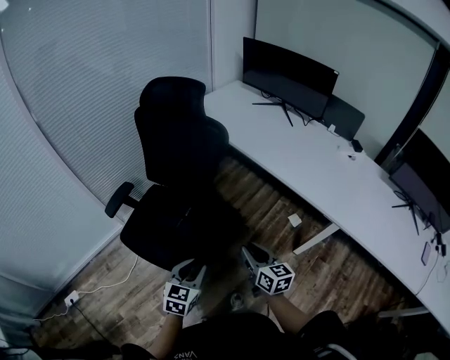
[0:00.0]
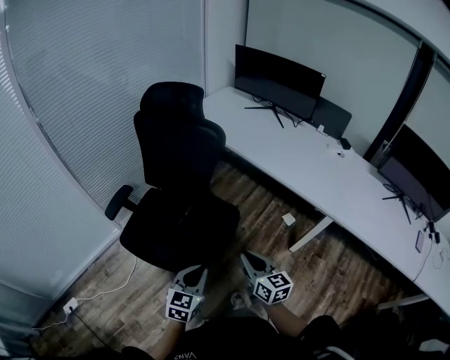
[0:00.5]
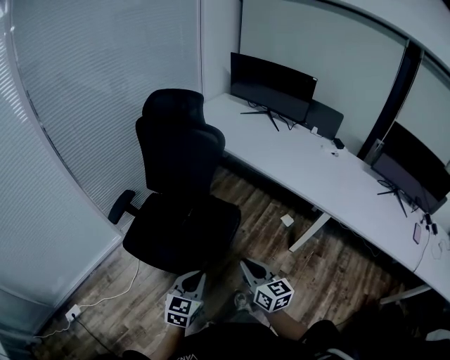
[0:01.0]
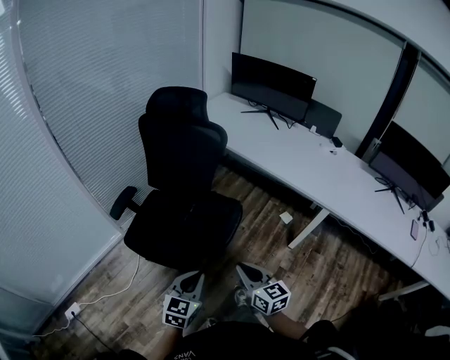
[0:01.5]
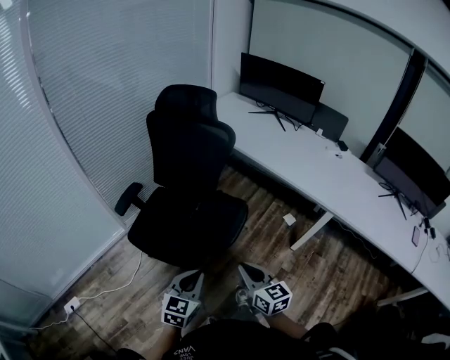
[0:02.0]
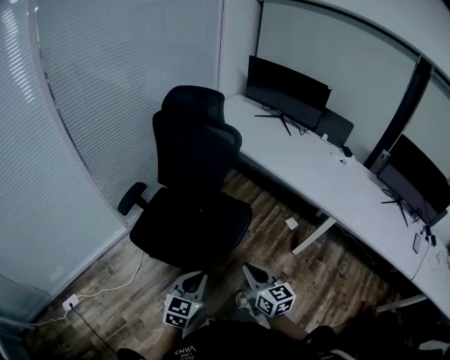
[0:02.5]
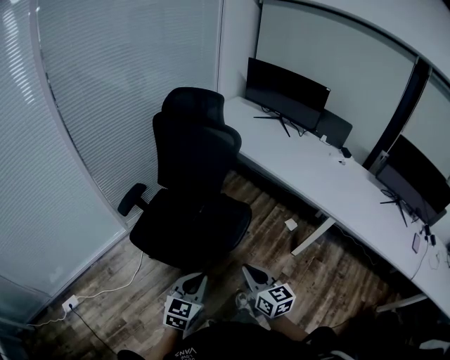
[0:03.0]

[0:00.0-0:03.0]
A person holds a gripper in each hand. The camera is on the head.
0:00.0 to 0:01.5: Both grippers move backward and to the left, some 20 cm. The left gripper closes.
0:01.5 to 0:03.0: The grippers make only small movements.

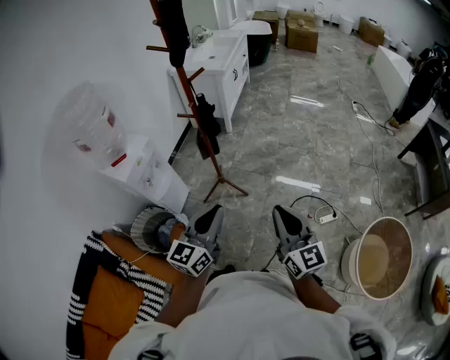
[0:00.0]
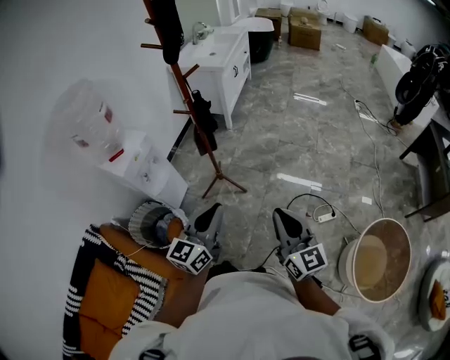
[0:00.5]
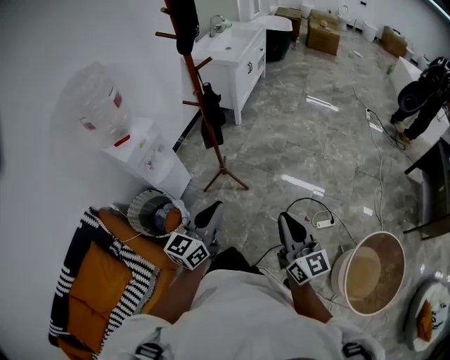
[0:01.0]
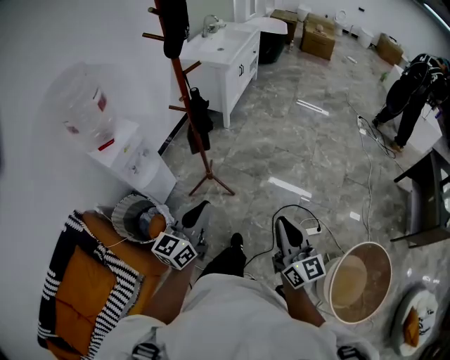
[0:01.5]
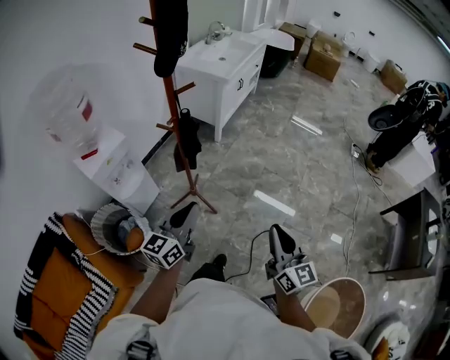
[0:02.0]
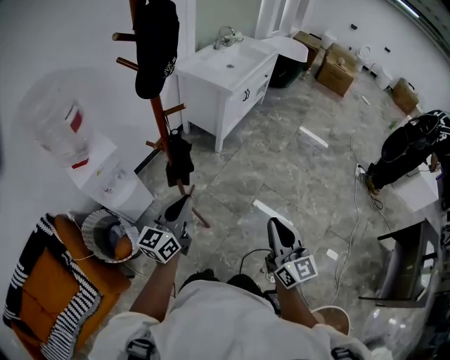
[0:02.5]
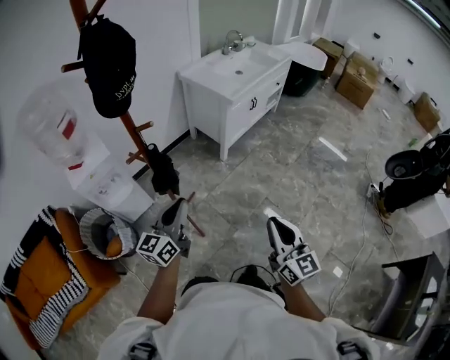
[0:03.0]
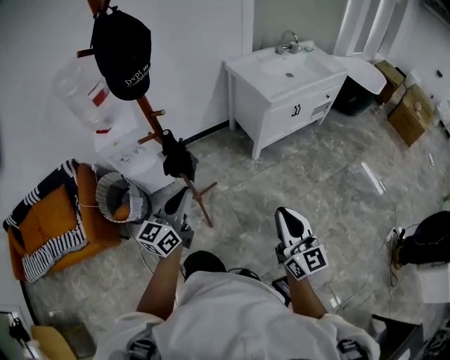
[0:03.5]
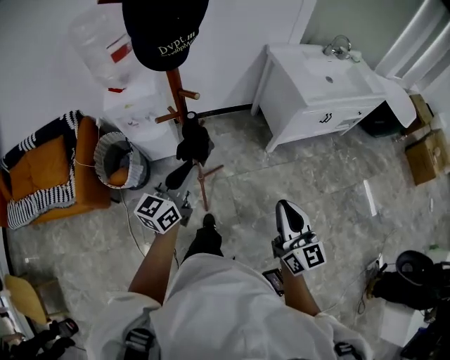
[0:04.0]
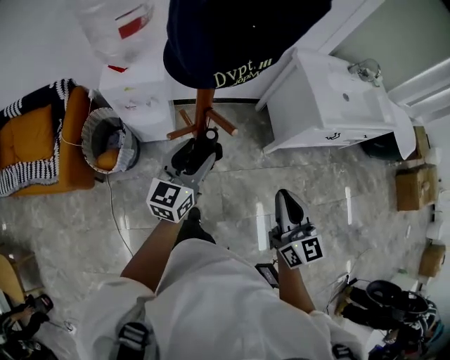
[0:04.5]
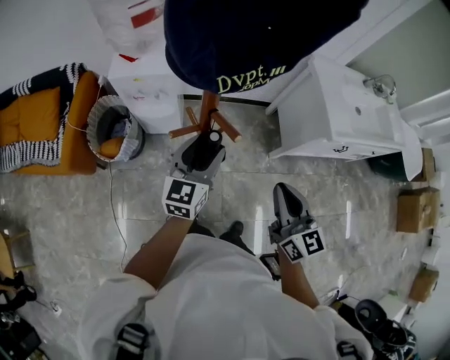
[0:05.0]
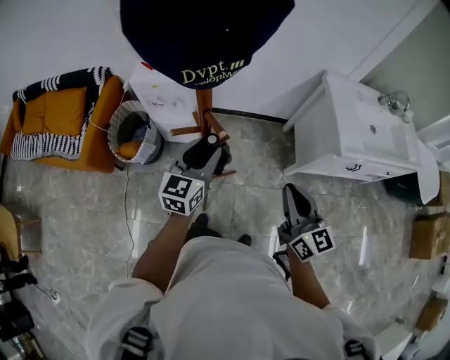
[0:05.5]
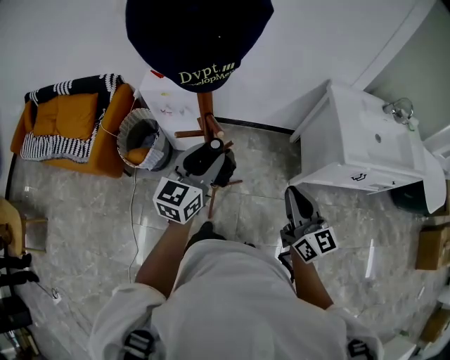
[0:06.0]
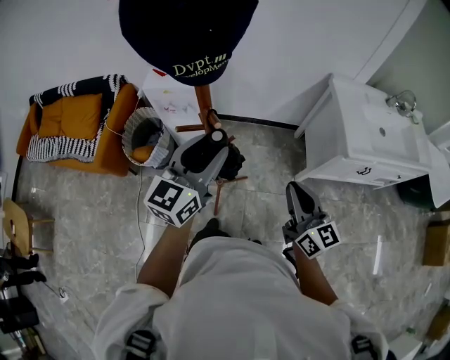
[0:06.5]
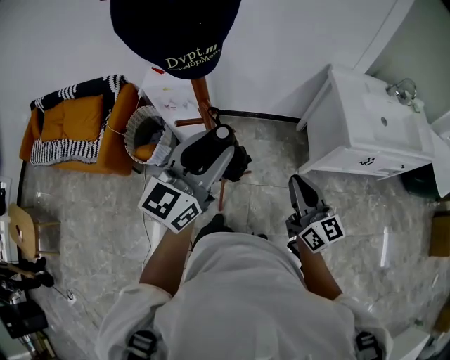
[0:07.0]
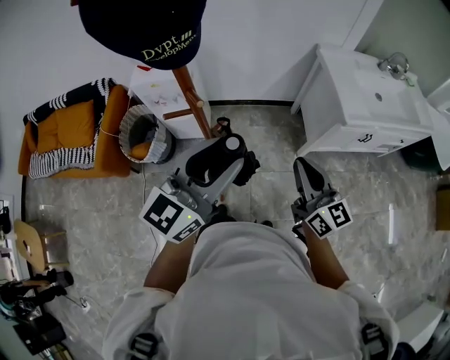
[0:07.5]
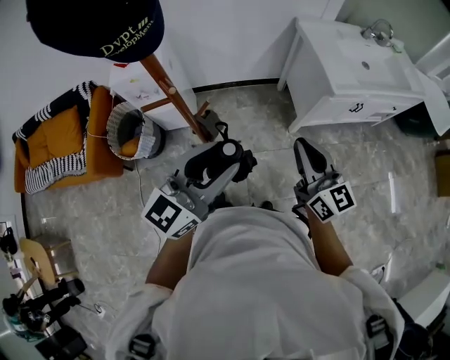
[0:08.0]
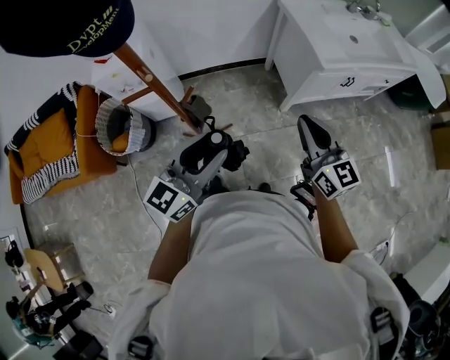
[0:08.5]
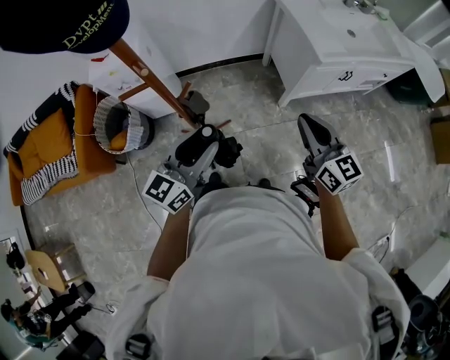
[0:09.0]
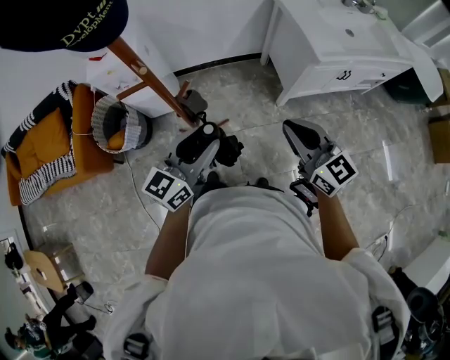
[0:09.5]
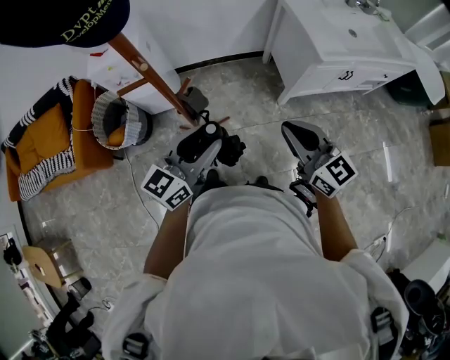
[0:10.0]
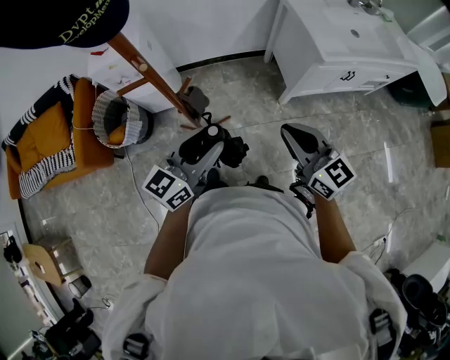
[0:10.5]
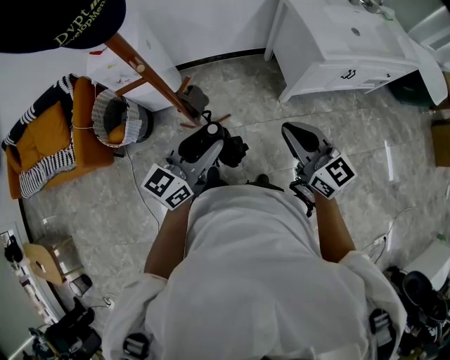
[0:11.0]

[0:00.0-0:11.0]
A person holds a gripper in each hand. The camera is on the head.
0:00.0 to 0:02.0: The right gripper moves forward and to the right, roughly 20 cm; the left gripper travels forward by about 20 cm.
0:02.0 to 0:03.5: The right gripper ends up approximately 40 cm from where it was, and changes its angle by roughly 40 degrees. The left gripper shifts by some 30 cm, and rotates about 40 degrees.
0:03.5 to 0:05.5: The right gripper ends up about 35 cm from where it was, and swivels about 30 degrees; the left gripper ends up approximately 25 cm from where it was, changes its angle by roughly 30 degrees, and opens its fingers.
0:05.5 to 0:07.5: The left gripper moves upward, backward and to the right, approximately 20 cm, and swivels roughly 20 degrees, while the right gripper changes place by roughly 5 cm.
0:07.5 to 0:09.0: The right gripper shifts some 10 cm to the right. The left gripper heads downward, covering some 15 cm.
0:09.0 to 0:11.0: The right gripper shifts by some 5 cm.

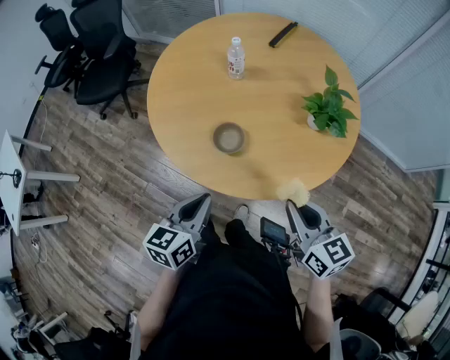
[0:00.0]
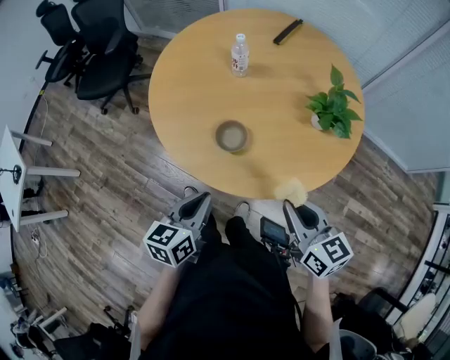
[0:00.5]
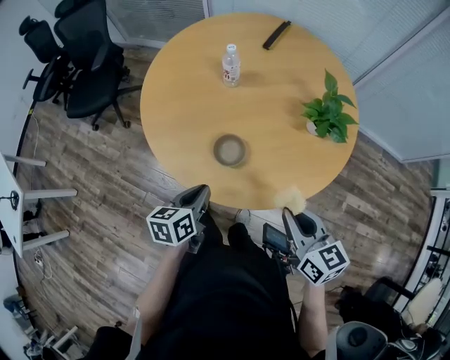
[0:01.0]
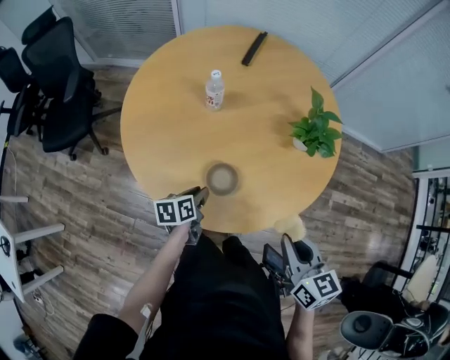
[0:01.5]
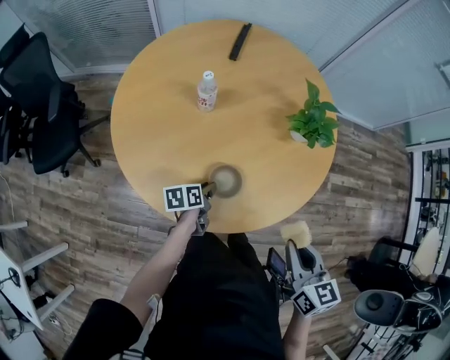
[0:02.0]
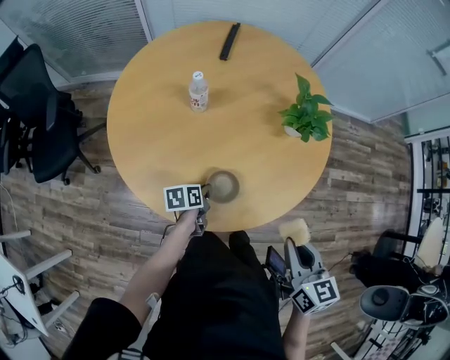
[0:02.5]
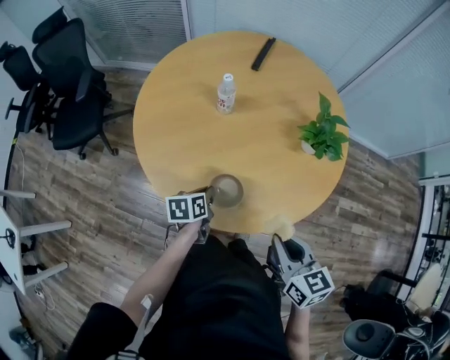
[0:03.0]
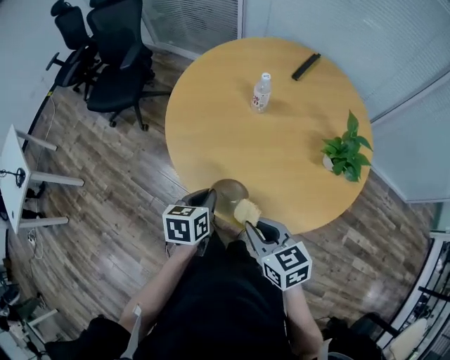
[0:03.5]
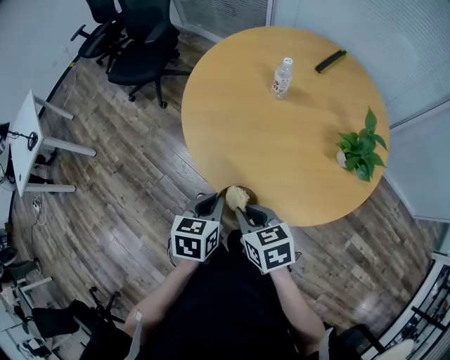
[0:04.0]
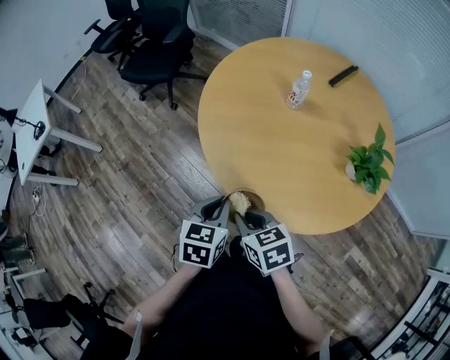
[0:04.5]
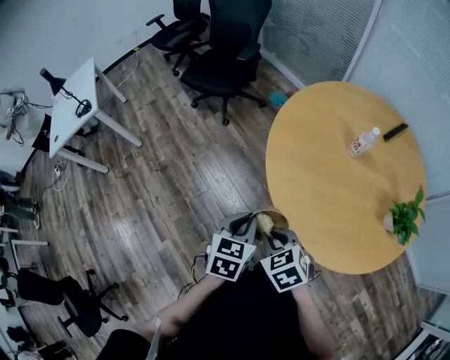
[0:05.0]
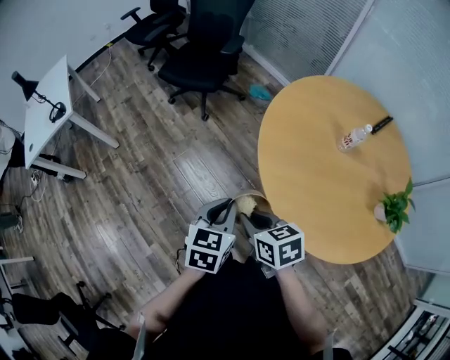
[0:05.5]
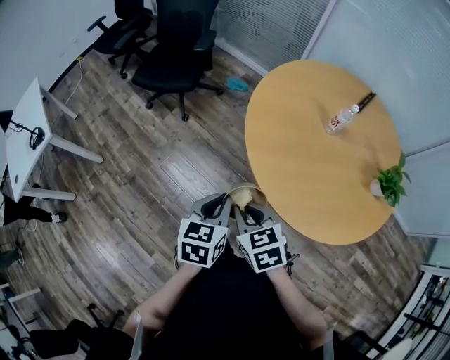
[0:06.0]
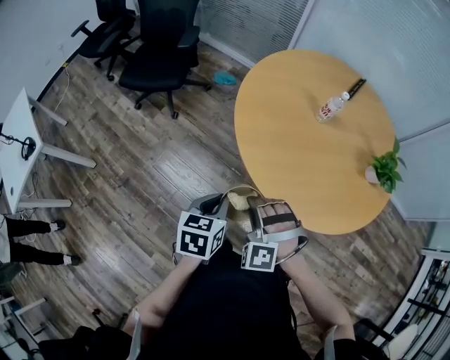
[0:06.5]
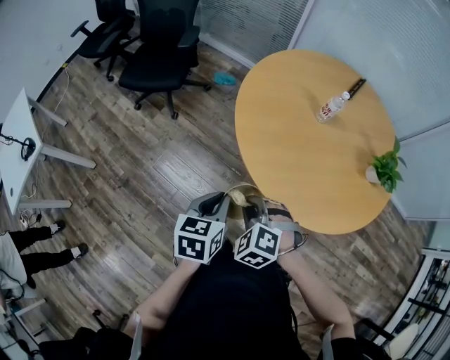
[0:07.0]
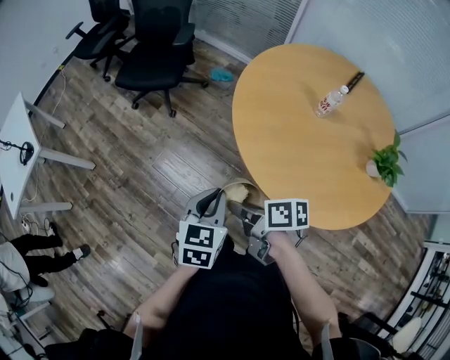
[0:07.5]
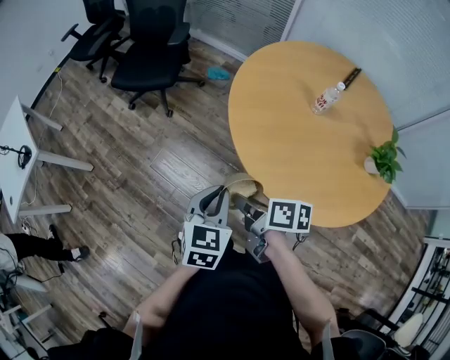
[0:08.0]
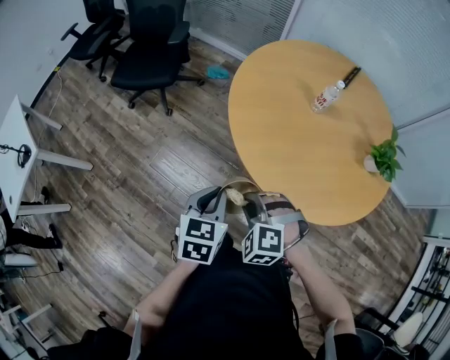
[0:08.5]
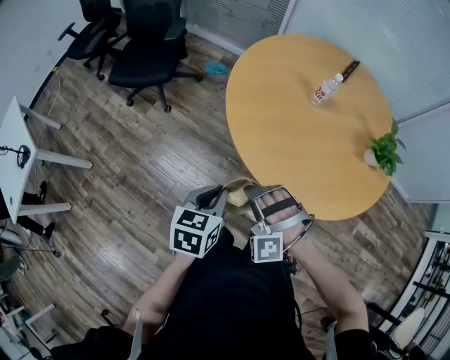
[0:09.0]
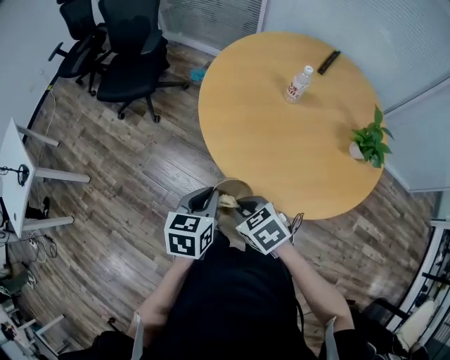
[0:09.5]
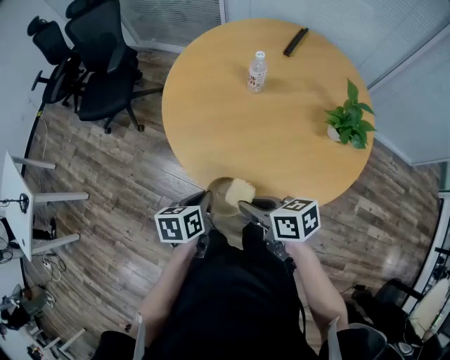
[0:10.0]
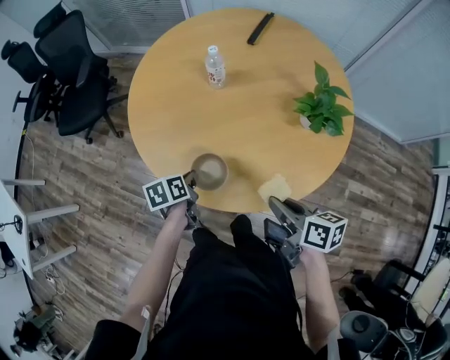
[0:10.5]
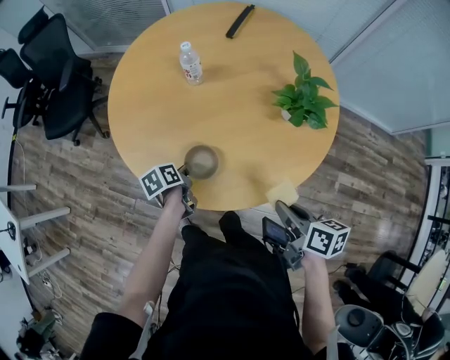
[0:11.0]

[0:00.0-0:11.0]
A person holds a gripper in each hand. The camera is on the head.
0:00.0 to 0:02.0: The left gripper shifts by about 30 cm, changes its angle by some 40 degrees, and opens its fingers, while the right gripper changes place by about 10 cm, and rotates approximately 40 degrees.
0:02.0 to 0:03.5: The right gripper moves approximately 10 cm, and changes its angle by approximately 50 degrees; the left gripper shifts roughly 15 cm upward, rotates roughly 30 degrees, and closes.
0:03.5 to 0:05.5: Both grippers travel together to the left, about 25 cm. The right gripper changes its angle by some 20 degrees.
0:05.5 to 0:07.5: The right gripper twists approximately 40 degrees clockwise, seen from behind.
0:07.5 to 0:09.0: The right gripper rotates around the line of its fingers by about 130 degrees, counterclockwise from behind.
0:09.0 to 0:11.0: The left gripper travels to the right and downward by some 35 cm, and rotates roughly 40 degrees, while the right gripper moves to the right, about 50 cm, and rotates around the line of its fingers by about 140 degrees, clockwise from behind.

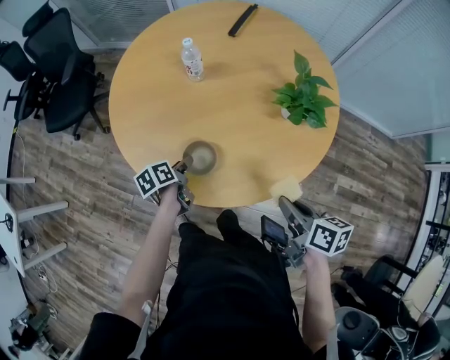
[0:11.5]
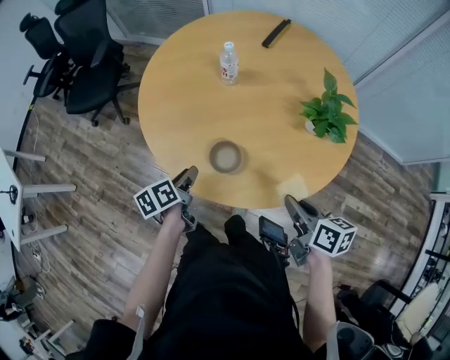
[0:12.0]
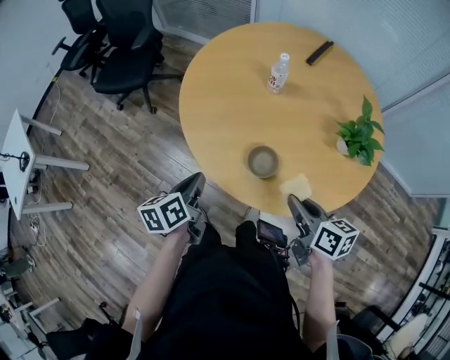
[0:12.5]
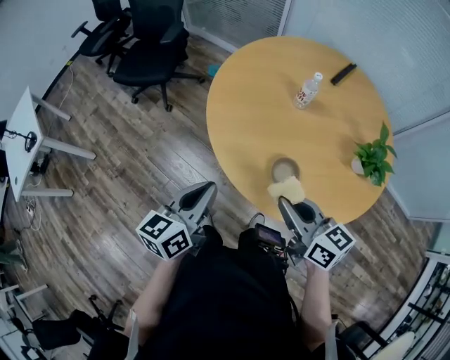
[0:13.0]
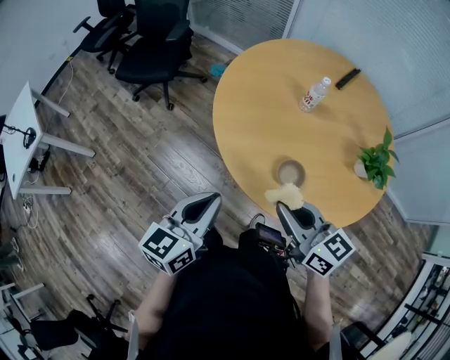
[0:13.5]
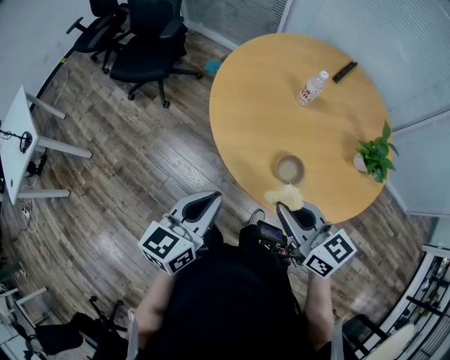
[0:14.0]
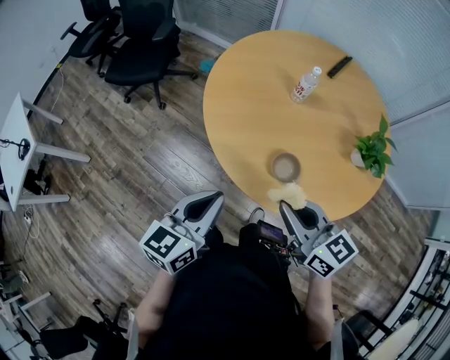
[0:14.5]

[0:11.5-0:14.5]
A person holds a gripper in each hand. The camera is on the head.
0:11.5 to 0:13.0: The right gripper is displaced to the left by approximately 25 cm, and changes its angle by about 40 degrees. Meanwhile the left gripper travels upward, to the left and backward by roughly 30 cm, tilts its fingers roughly 30 degrees upward, and closes.
0:13.0 to 0:14.5: There are only small adjustments of the grippers.
